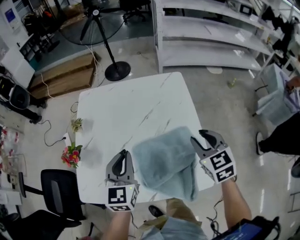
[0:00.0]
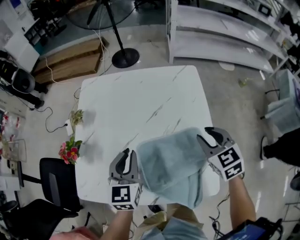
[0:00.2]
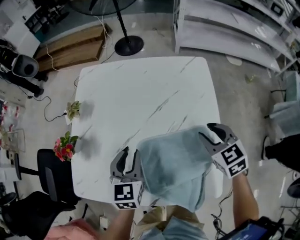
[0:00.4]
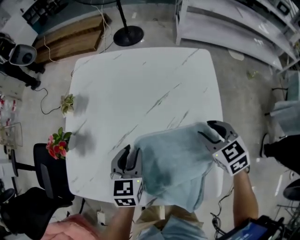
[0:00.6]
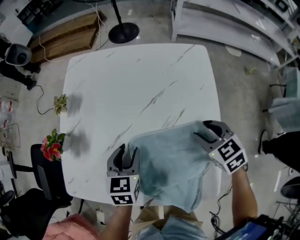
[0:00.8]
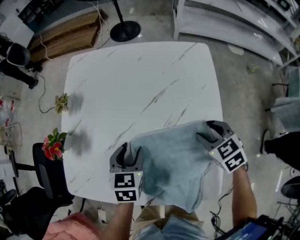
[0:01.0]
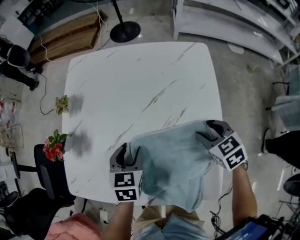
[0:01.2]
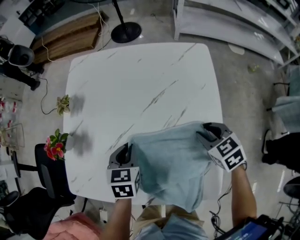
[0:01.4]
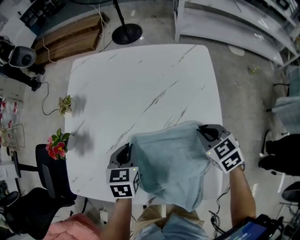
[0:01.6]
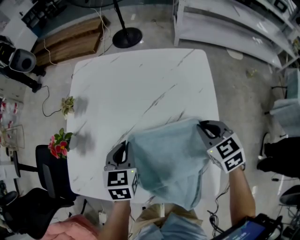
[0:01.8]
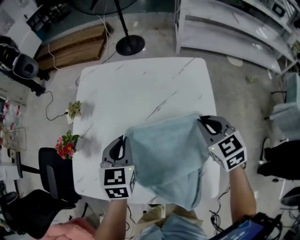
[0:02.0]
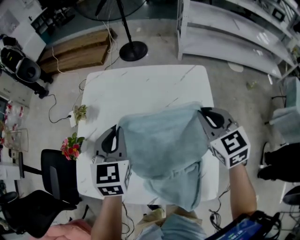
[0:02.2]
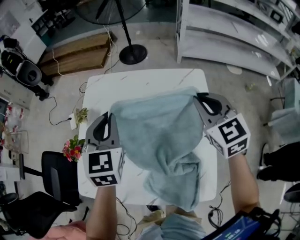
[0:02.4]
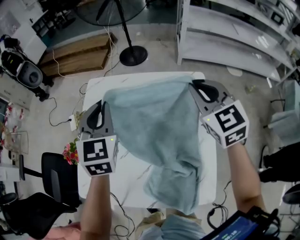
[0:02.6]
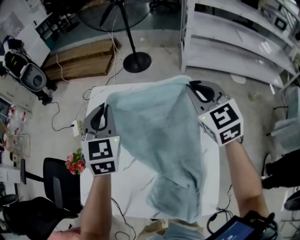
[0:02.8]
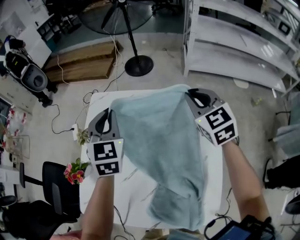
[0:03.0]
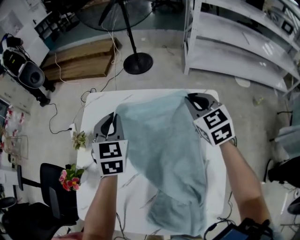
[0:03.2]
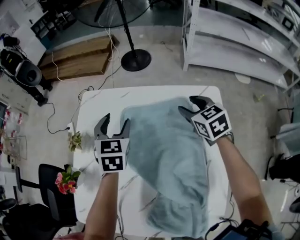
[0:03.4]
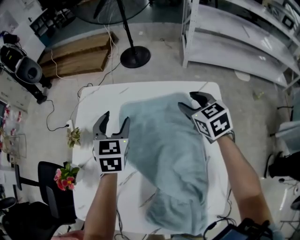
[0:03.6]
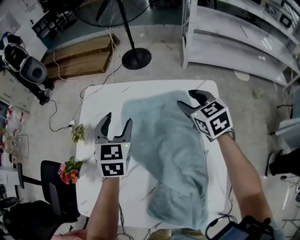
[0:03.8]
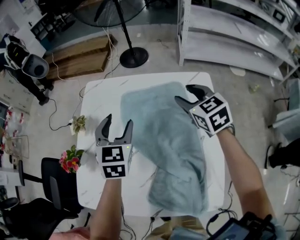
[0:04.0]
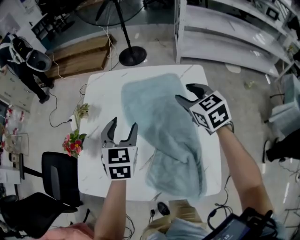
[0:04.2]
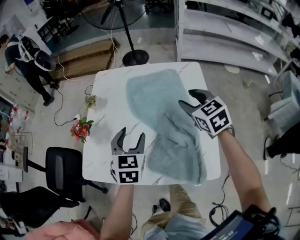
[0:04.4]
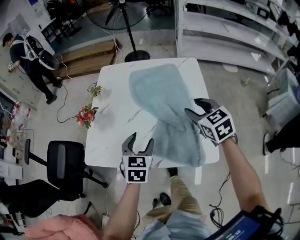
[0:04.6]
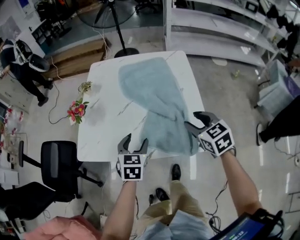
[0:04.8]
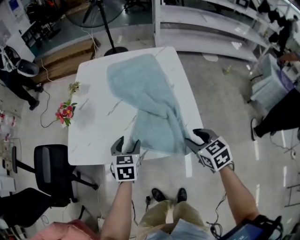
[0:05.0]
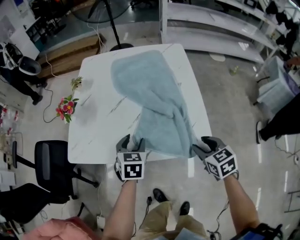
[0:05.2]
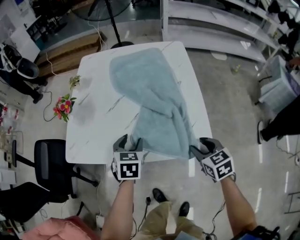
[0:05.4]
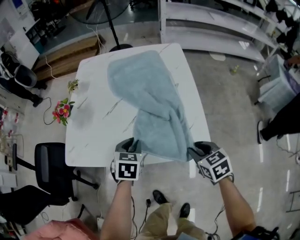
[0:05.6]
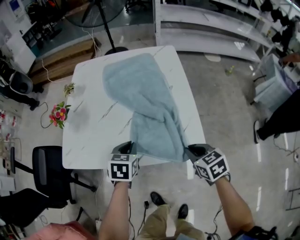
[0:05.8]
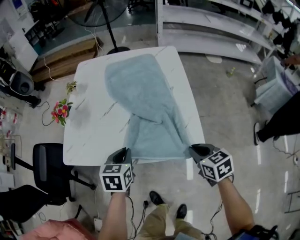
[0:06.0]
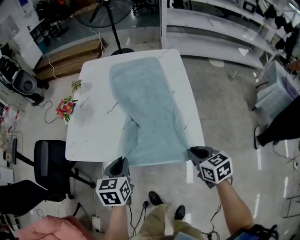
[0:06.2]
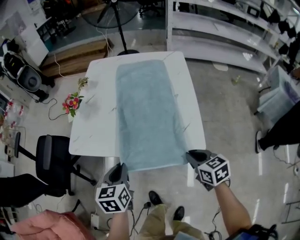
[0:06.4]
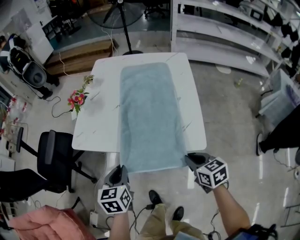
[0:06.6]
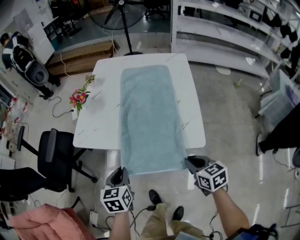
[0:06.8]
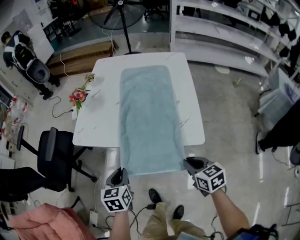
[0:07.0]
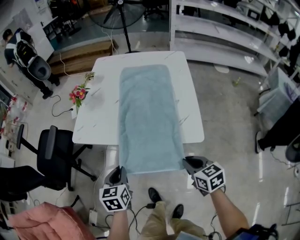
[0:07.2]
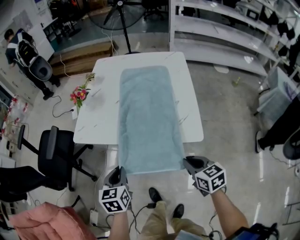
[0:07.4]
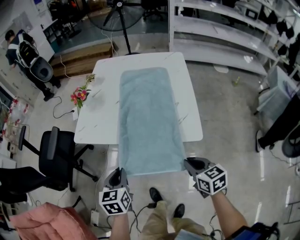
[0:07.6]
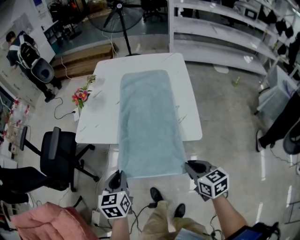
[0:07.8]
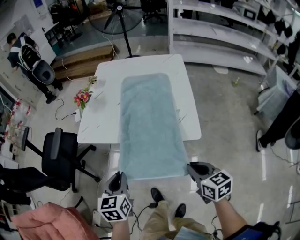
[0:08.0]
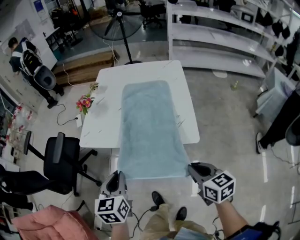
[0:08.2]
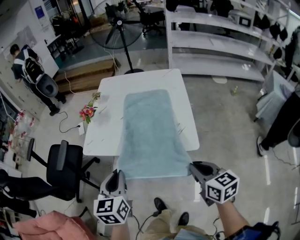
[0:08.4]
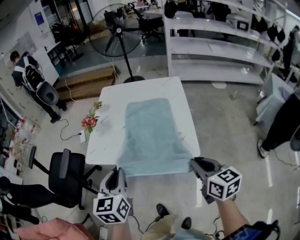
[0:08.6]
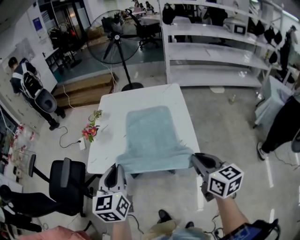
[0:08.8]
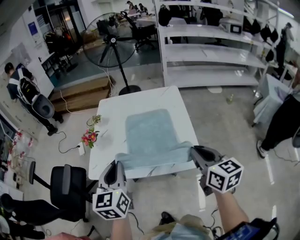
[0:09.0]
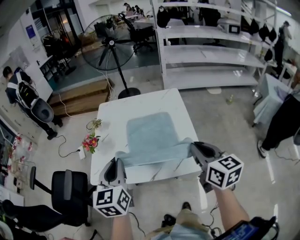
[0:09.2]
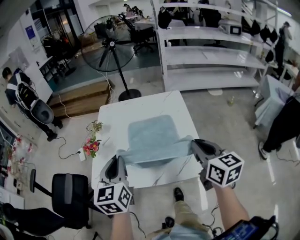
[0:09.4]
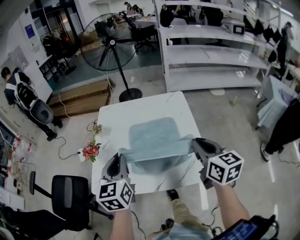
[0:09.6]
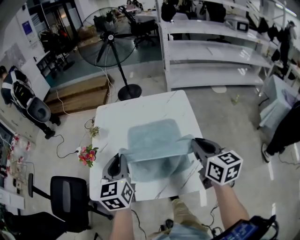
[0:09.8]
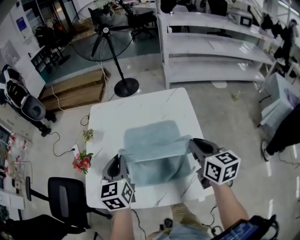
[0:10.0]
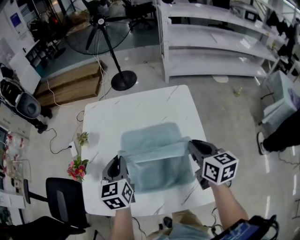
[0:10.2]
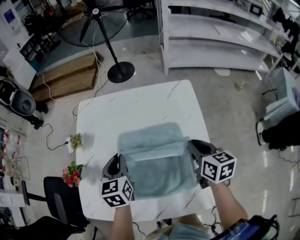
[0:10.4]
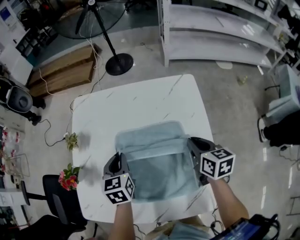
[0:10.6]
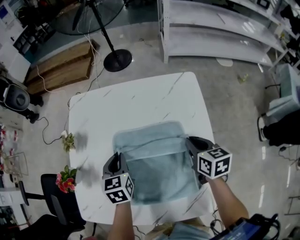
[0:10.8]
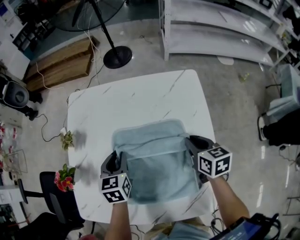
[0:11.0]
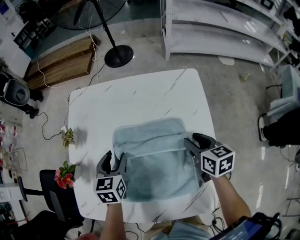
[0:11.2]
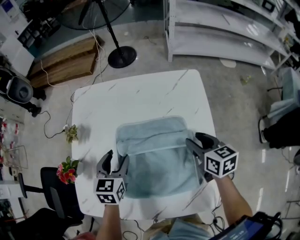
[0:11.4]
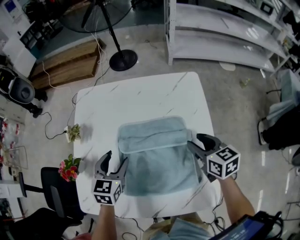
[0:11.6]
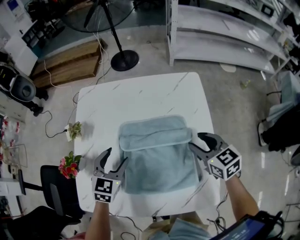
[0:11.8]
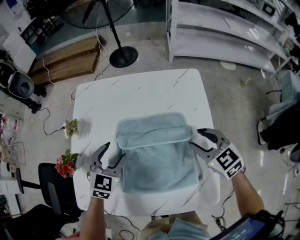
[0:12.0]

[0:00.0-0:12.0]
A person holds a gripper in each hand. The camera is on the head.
0:00.0 to 0:01.6: The left gripper travels downward by approximately 15 cm, points its fingers some 30 degrees further downward, and opens, then closes once more, while the right gripper goes approximately 15 cm downward and forward, turns by some 30 degrees, and closes its fingers.
0:01.6 to 0:03.0: The grippers both shift forward and upward by roughly 30 cm. The left gripper rotates roughly 40 degrees; the right gripper turns by approximately 30 degrees.
0:03.0 to 0:04.4: The two grippers go about 25 cm backward. The left gripper opens its fingers, while the right gripper opens.
0:04.4 to 0:06.0: The left gripper moves backward and downward, about 20 cm, rotates roughly 20 degrees, and closes its fingers. Meanwhile the right gripper moves backward and downward, some 35 cm, swivels about 30 degrees, and closes.
0:06.0 to 0:07.6: The two grippers go some 15 cm backward and to the left.
0:07.6 to 0:09.0: The grippers both shift upward and forward by roughly 25 cm. The right gripper turns by about 30 degrees. The left gripper turns by some 20 degrees.
0:09.0 to 0:10.4: Both grippers travel together forward and downward, some 35 cm.
0:10.4 to 0:12.0: The right gripper goes downward and returns, approximately 10 cm each way, turns by approximately 40 degrees, and opens, while the left gripper is displaced downward by about 5 cm, swivels approximately 40 degrees, and opens.

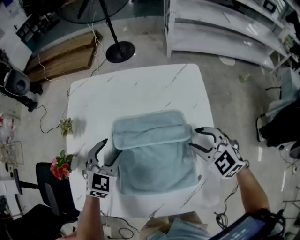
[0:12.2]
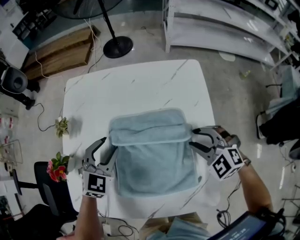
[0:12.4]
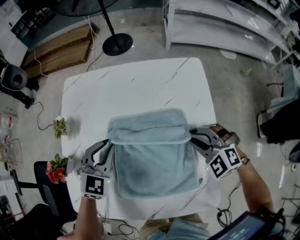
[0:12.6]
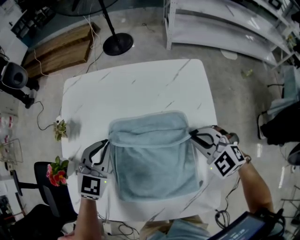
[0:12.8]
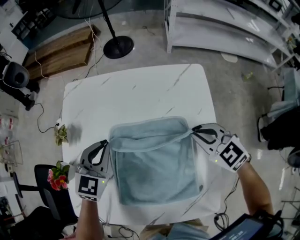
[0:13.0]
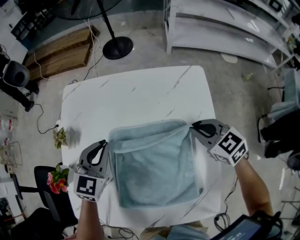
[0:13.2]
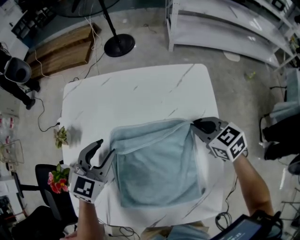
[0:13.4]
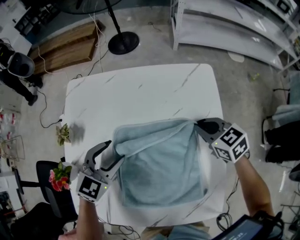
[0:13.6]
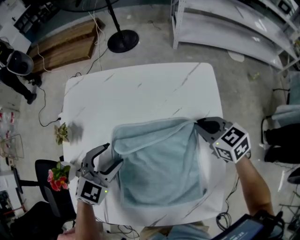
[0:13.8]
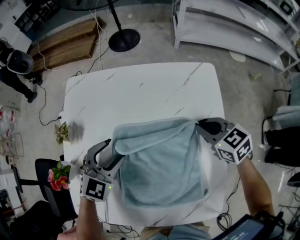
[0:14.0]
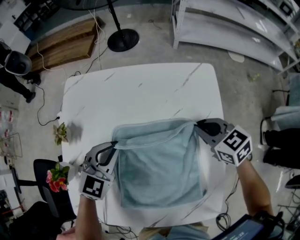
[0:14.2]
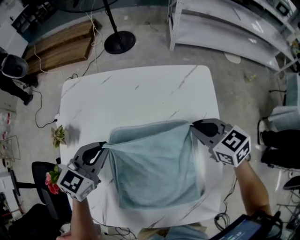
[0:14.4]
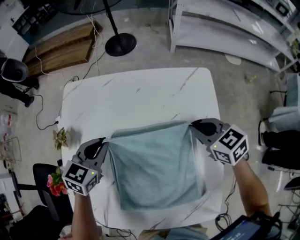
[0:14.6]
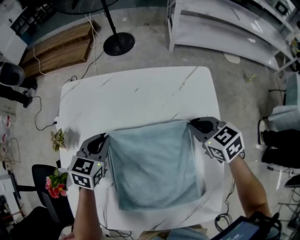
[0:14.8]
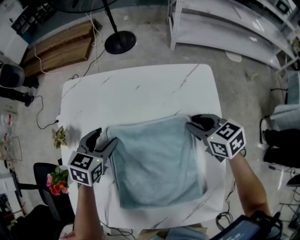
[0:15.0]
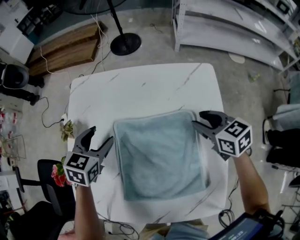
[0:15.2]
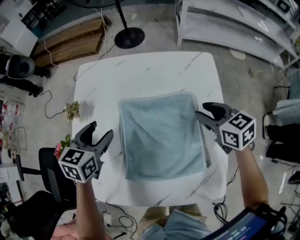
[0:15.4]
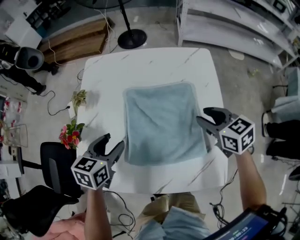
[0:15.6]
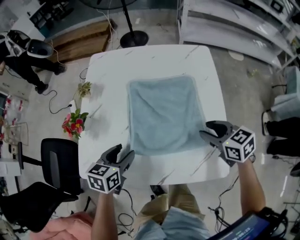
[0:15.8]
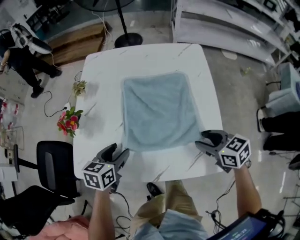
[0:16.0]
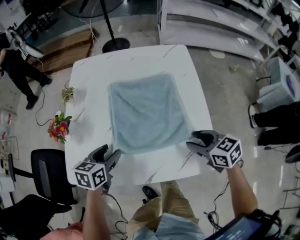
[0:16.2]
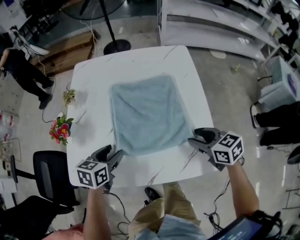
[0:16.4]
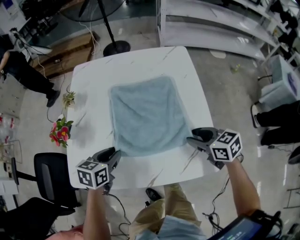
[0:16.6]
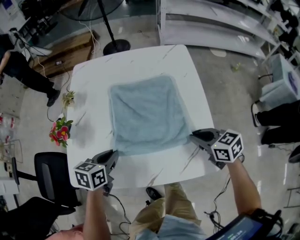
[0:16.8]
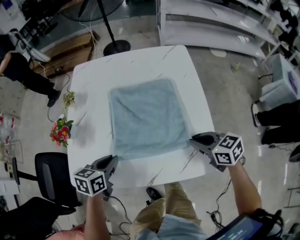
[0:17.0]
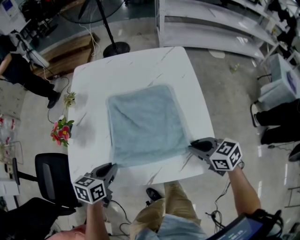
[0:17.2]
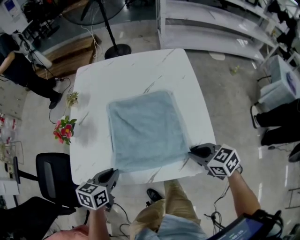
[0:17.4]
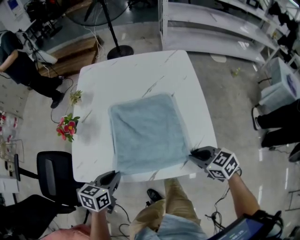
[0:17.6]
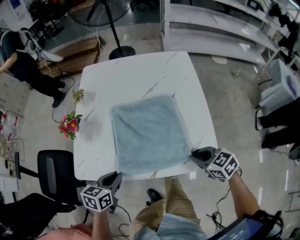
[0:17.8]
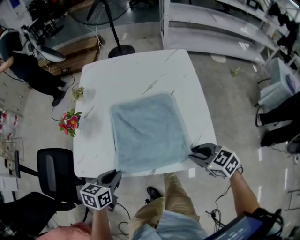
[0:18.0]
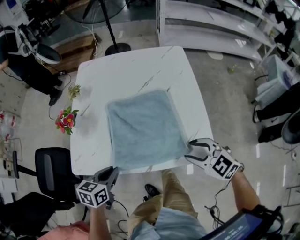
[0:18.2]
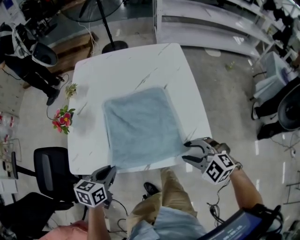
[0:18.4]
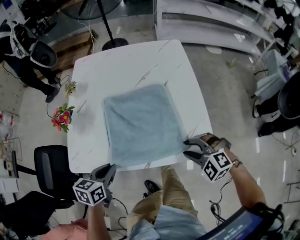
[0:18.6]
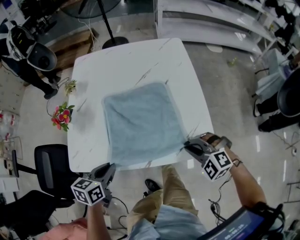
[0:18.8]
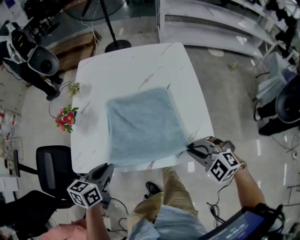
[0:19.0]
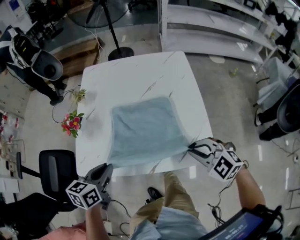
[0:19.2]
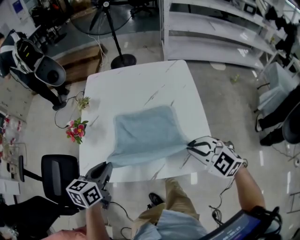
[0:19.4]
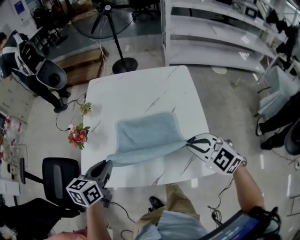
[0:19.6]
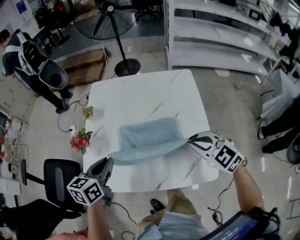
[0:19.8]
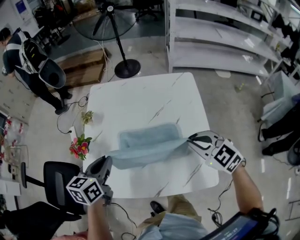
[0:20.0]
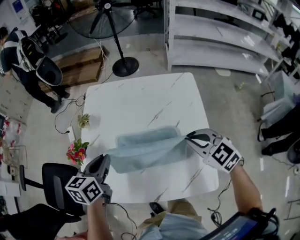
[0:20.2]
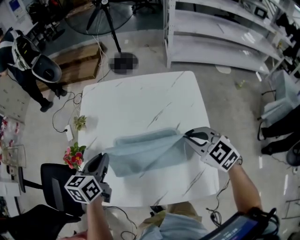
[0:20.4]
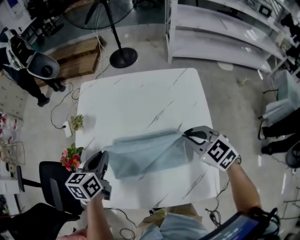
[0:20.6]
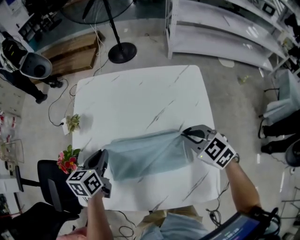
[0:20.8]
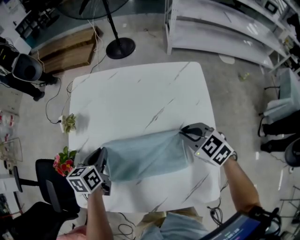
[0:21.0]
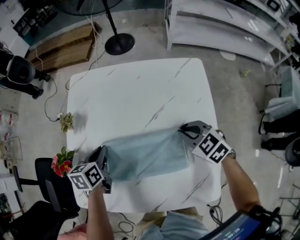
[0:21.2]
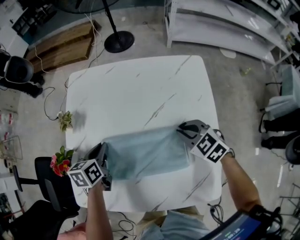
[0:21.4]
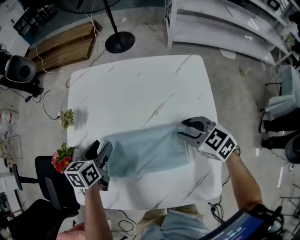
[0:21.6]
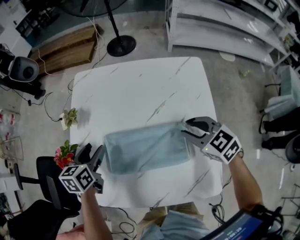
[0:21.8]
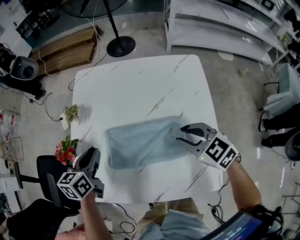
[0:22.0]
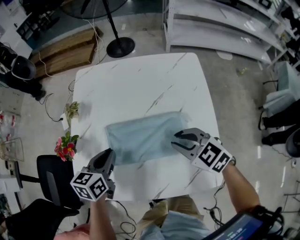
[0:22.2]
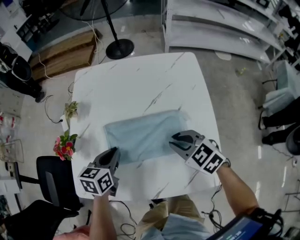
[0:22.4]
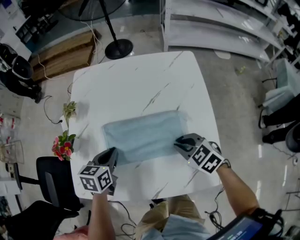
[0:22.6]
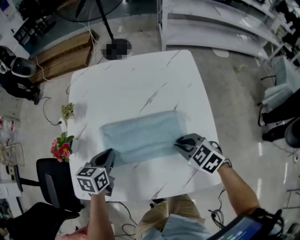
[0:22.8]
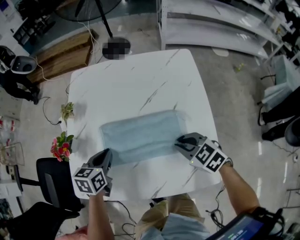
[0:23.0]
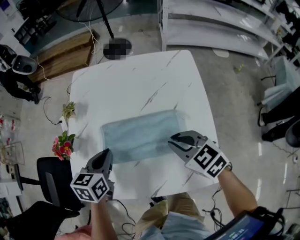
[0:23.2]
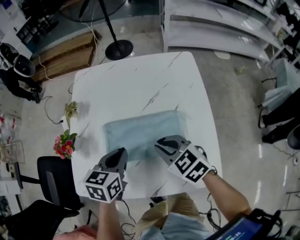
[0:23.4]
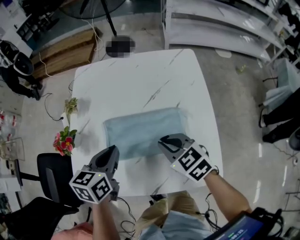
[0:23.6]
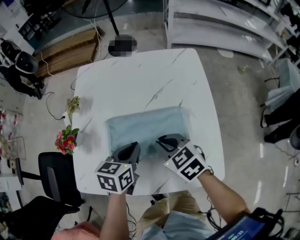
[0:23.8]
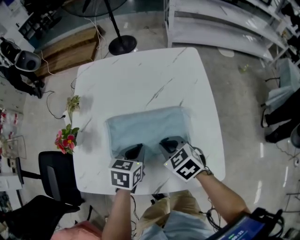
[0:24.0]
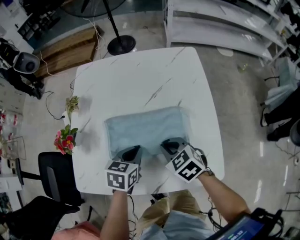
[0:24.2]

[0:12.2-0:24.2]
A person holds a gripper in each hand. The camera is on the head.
0:12.2 to 0:13.8: The left gripper closes, then reopens. Meanwhile the right gripper shifts roughly 10 cm forward, swivels approximately 30 degrees, and closes.
0:13.8 to 0:15.2: The left gripper heads forward and to the left, covering approximately 10 cm, turns by roughly 30 degrees, and closes and opens again. Meanwhile the right gripper opens.
0:15.2 to 0:16.6: The grippers both shift backward by some 25 cm. The left gripper rotates some 20 degrees, and closes up.
0:16.6 to 0:18.2: Both grippers move backward, some 10 cm. The left gripper closes its fingers; the right gripper swivels some 40 degrees, and closes, then reopens.
0:18.2 to 0:19.8: The left gripper shifts roughly 20 cm upward and forward; the right gripper is displaced forward and upward by about 15 cm, and closes its fingers.
0:19.8 to 0:21.2: The two grippers go roughly 20 cm forward and downward.
0:21.2 to 0:22.6: The right gripper is displaced backward and to the left by about 10 cm, and opens, then closes again. Meanwhile the left gripper moves backward, roughly 10 cm, and opens, then closes once more.
0:22.6 to 0:24.2: The left gripper is displaced to the right by about 10 cm. Meanwhile the right gripper is displaced to the left by roughly 5 cm.
